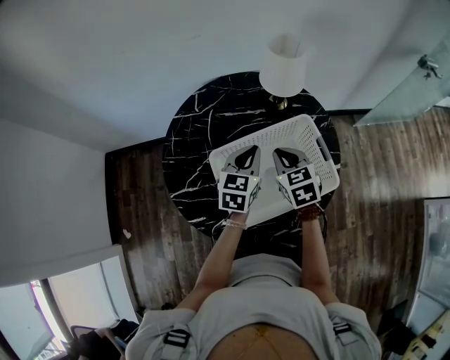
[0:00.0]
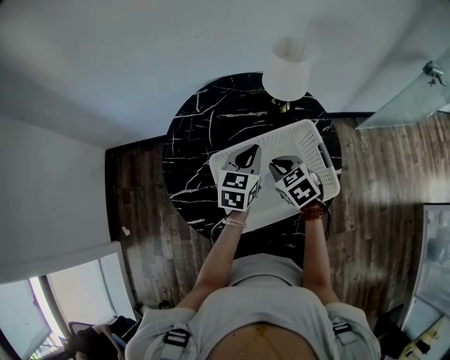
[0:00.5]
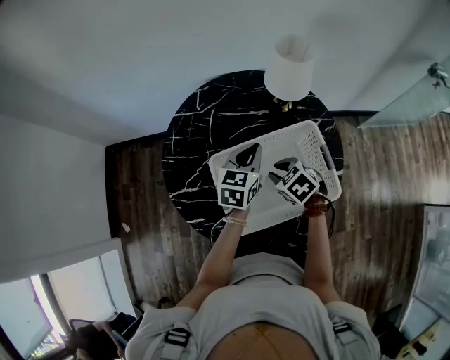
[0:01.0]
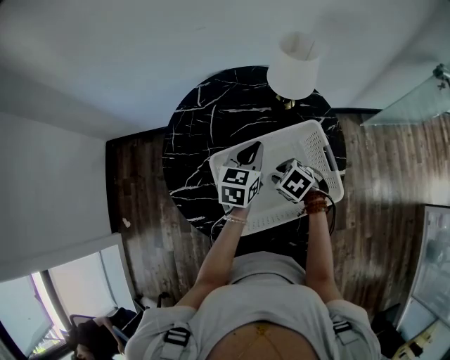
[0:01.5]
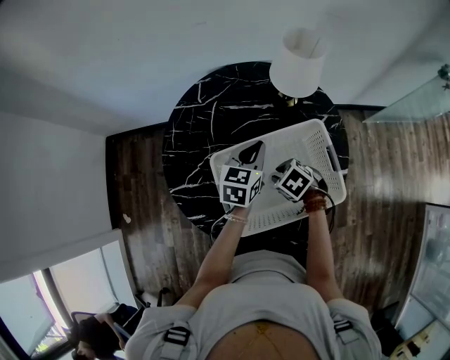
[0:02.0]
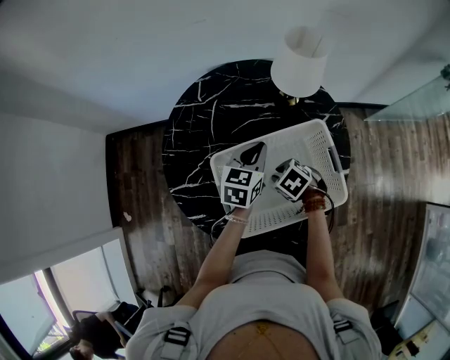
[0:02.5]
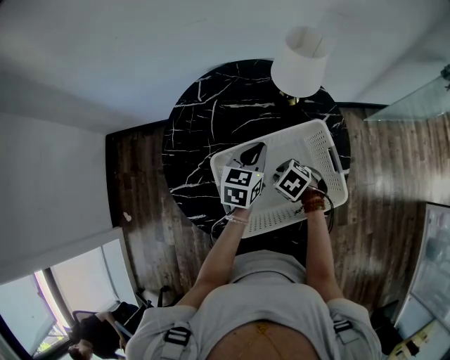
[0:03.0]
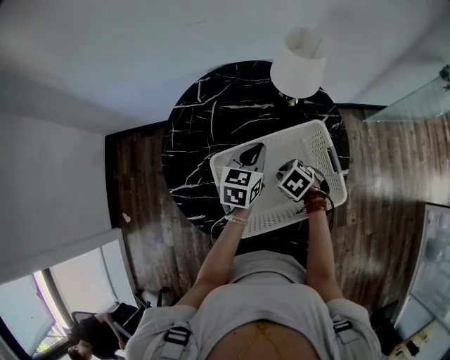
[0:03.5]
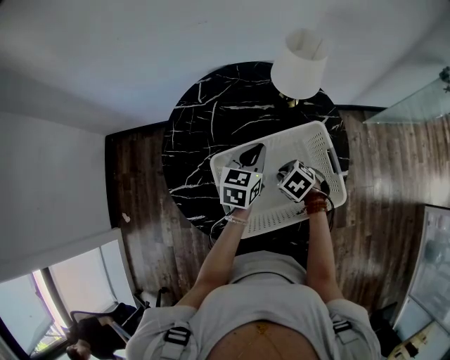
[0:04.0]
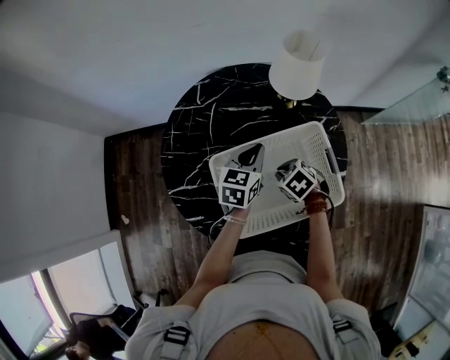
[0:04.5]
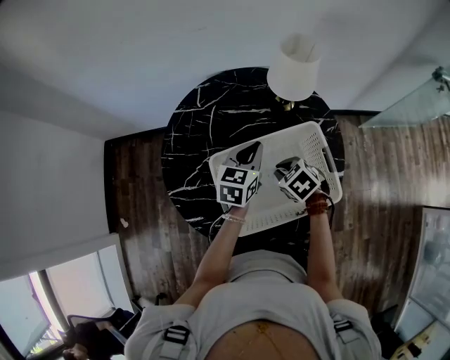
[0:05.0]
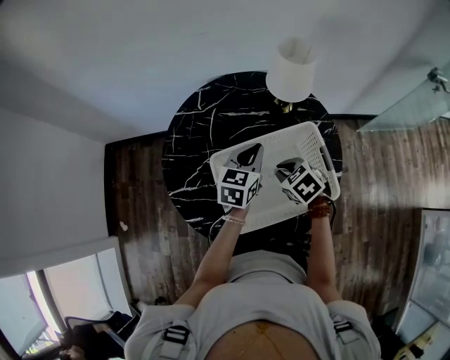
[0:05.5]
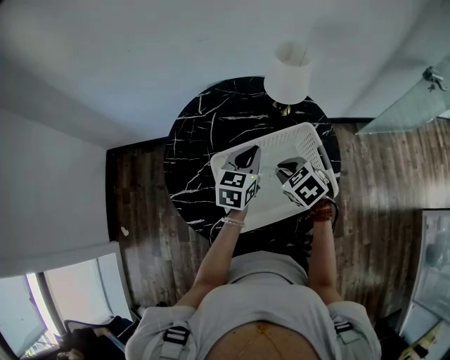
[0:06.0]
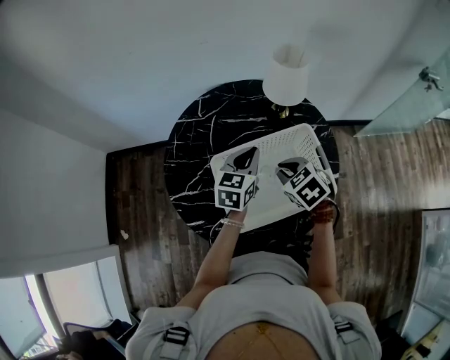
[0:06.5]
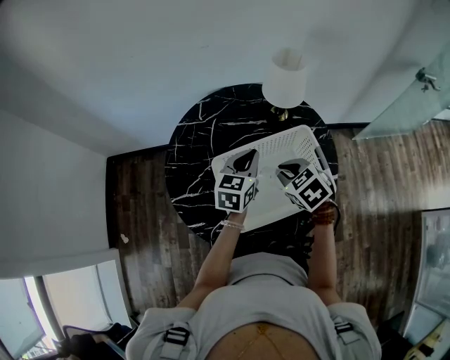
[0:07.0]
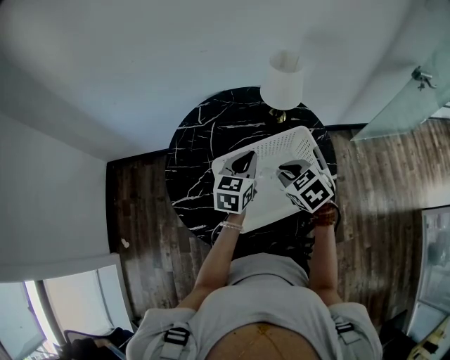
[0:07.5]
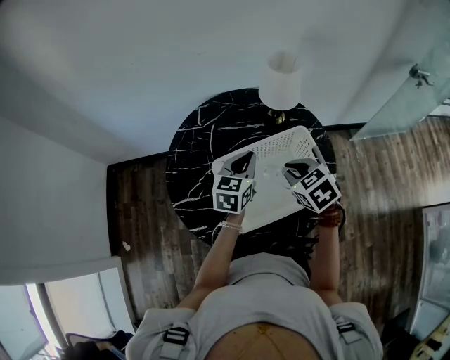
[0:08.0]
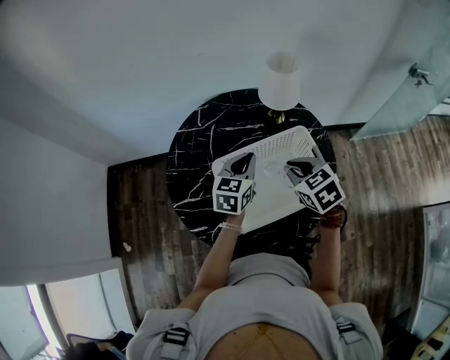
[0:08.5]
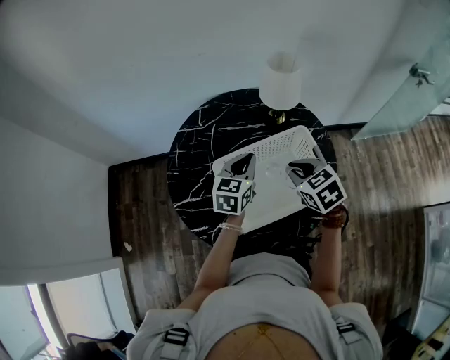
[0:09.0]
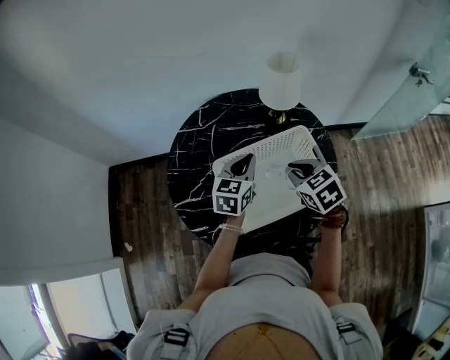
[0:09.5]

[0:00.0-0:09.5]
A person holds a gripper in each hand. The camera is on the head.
0:00.0 to 0:02.0: The left gripper ends up approximately 5 cm from where it was; the right gripper heads downward, covering about 15 cm, and rotates roughly 40 degrees.
0:02.0 to 0:04.0: There are only small adjustments of the grippers.
0:04.0 to 0:05.5: The right gripper heads upward, covering approximately 10 cm.
0:05.5 to 0:07.5: The right gripper goes roughly 10 cm upward.
0:07.5 to 0:09.5: There are only small adjustments of the grippers.

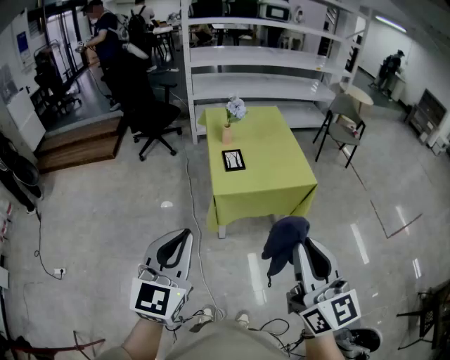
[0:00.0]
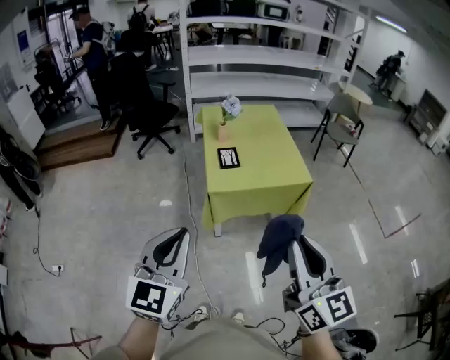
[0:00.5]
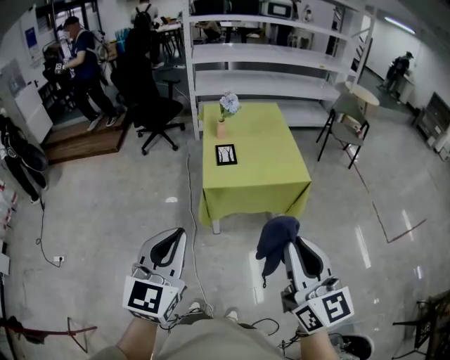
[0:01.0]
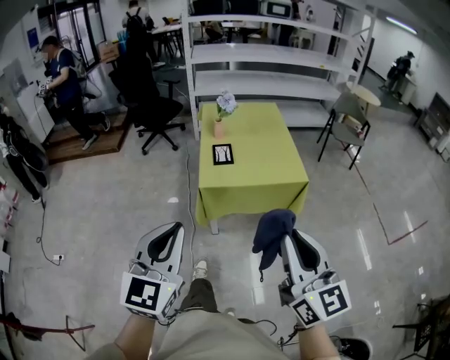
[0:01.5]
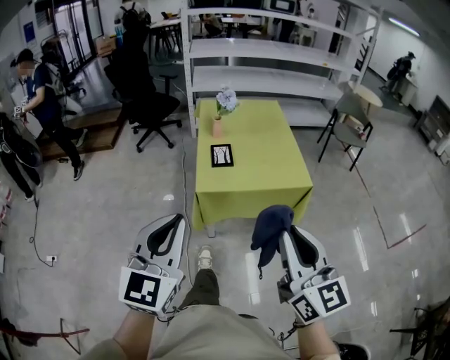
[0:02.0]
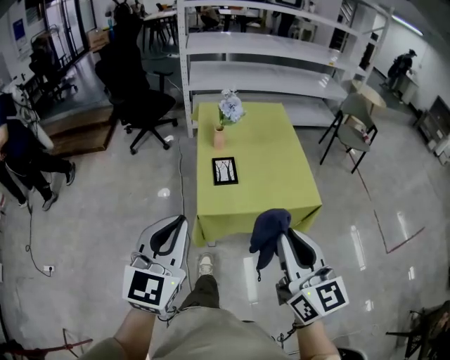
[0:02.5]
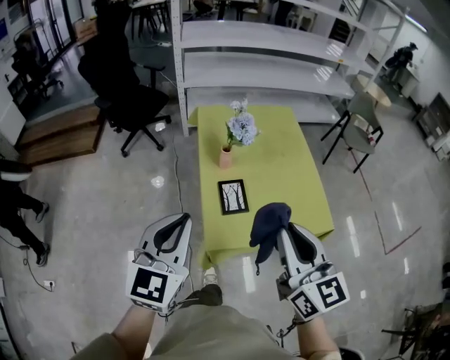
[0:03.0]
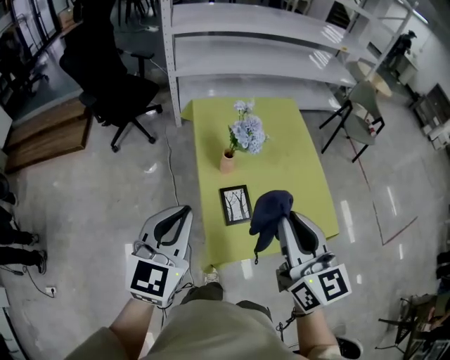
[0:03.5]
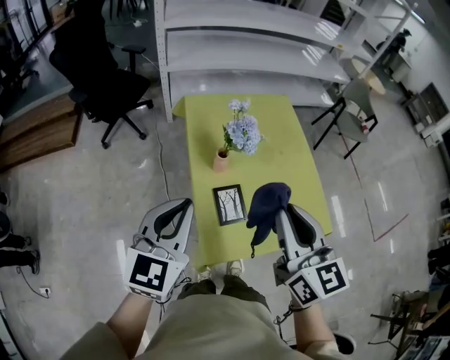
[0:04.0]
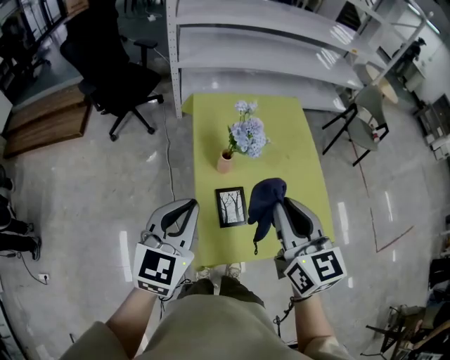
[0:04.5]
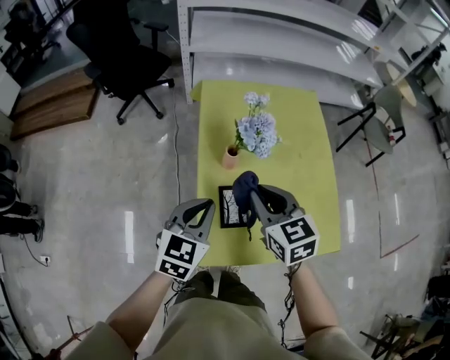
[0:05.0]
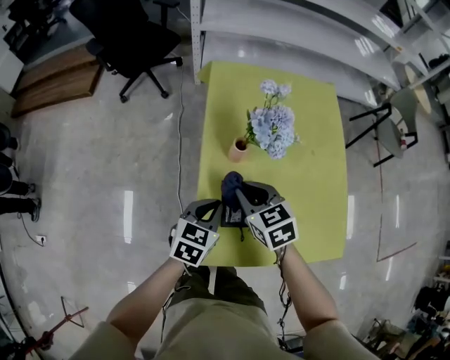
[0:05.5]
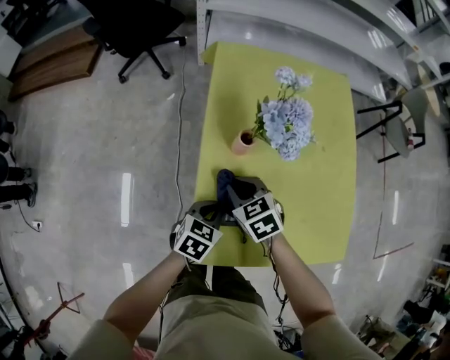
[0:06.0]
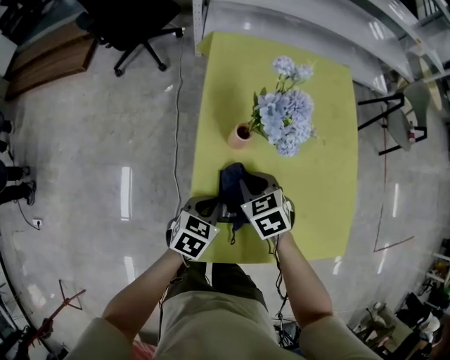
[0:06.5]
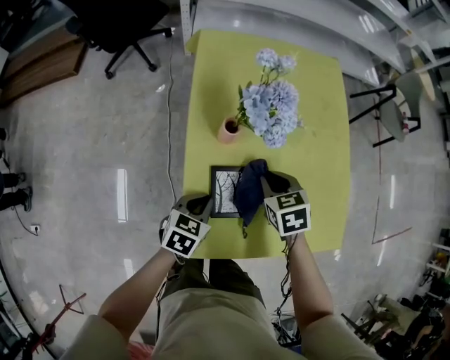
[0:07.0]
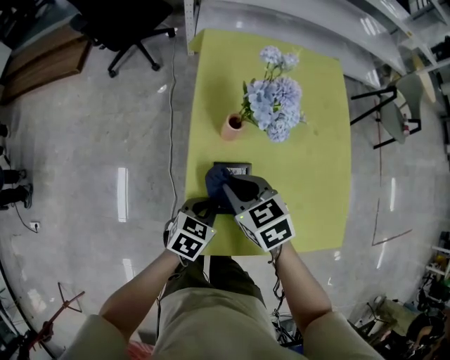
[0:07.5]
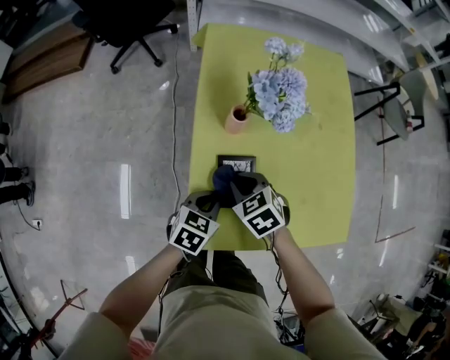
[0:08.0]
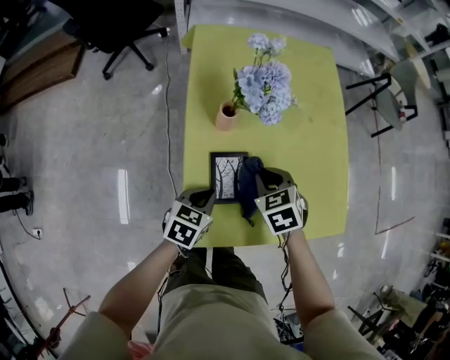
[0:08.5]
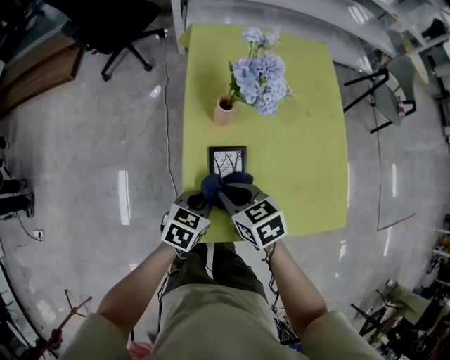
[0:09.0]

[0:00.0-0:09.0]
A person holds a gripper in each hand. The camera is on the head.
0:00.0 to 0:02.0: The left gripper goes some 10 cm to the right and forward; the right gripper moves forward, to the right and downward, some 15 cm.
0:02.0 to 0:04.5: The two grippers travel together, forward, roughly 50 cm.
0:04.5 to 0:07.0: The two grippers go approximately 30 cm downward. The left gripper tips its fingers downward by some 30 degrees. Meanwhile the right gripper tilts its fingers approximately 40 degrees downward.
0:07.0 to 0:09.0: The right gripper moves left and right over roughly 10 cm, changing direction 2 times, and turns by approximately 20 degrees.

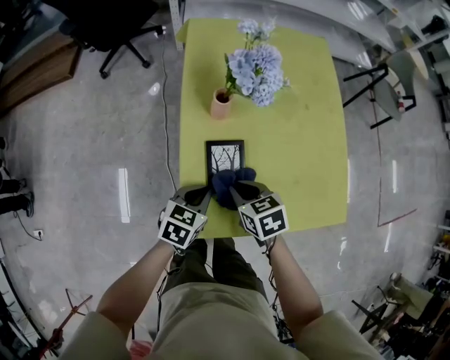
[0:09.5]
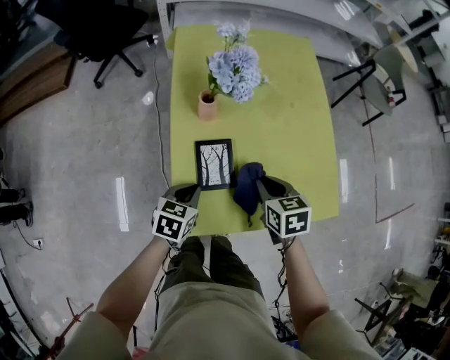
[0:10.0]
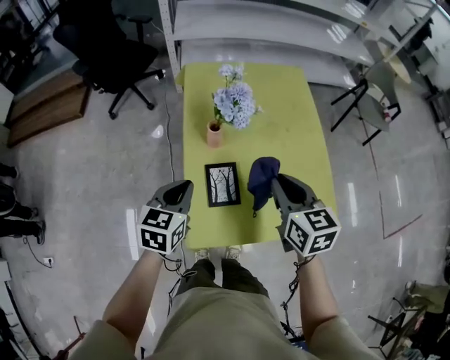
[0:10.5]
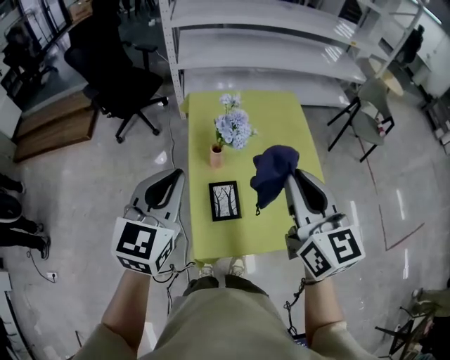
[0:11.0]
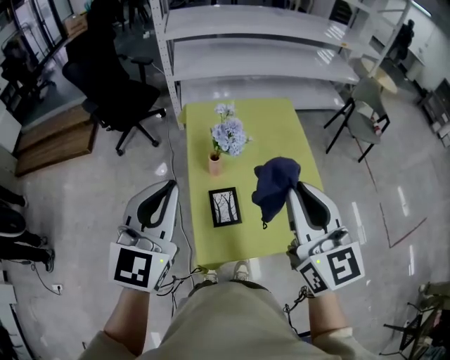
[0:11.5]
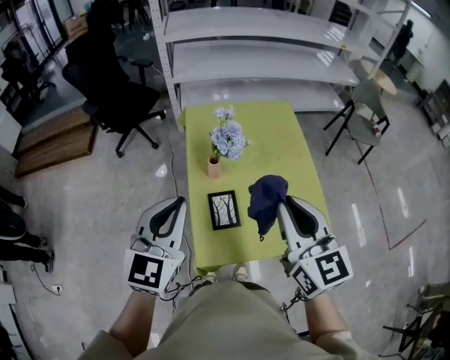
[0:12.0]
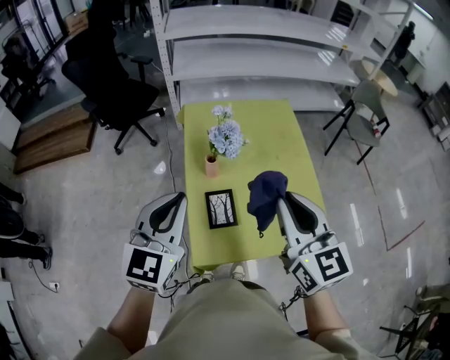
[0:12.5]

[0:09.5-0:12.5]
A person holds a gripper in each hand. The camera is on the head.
0:09.5 to 0:11.0: The two grippers go roughly 40 cm upward. The right gripper tips its fingers upward by approximately 50 degrees. Meanwhile the left gripper tips its fingers upward by approximately 30 degrees.

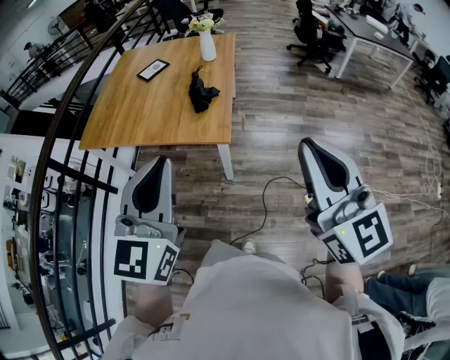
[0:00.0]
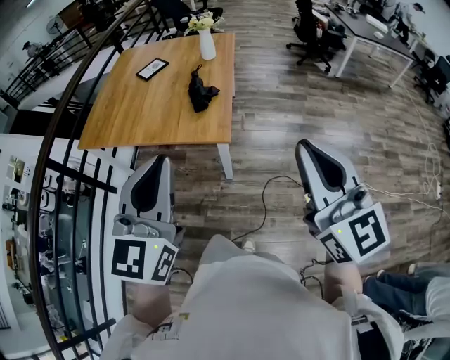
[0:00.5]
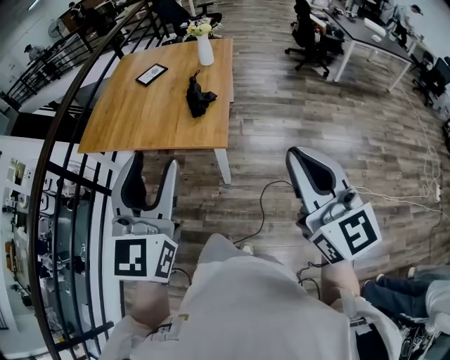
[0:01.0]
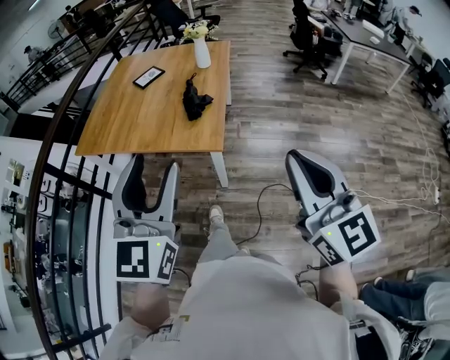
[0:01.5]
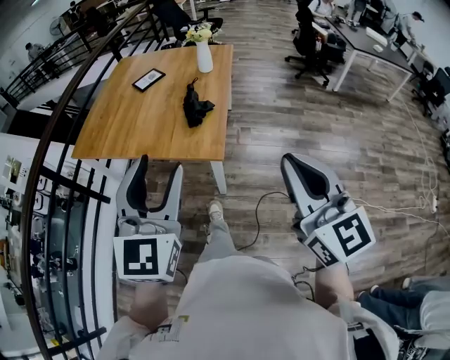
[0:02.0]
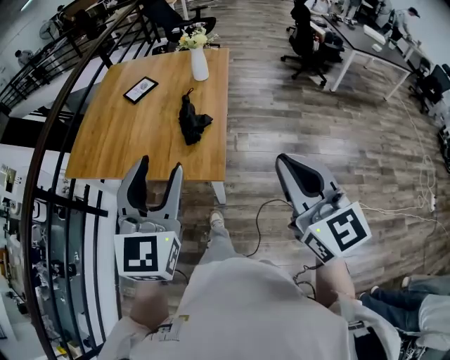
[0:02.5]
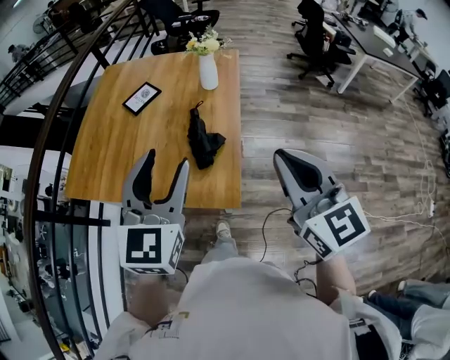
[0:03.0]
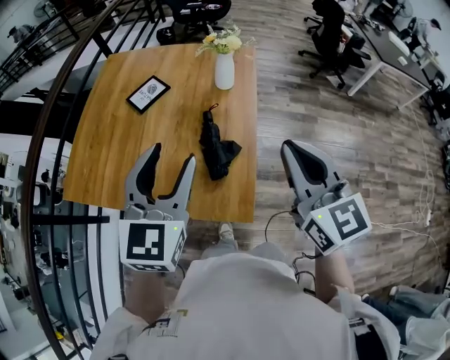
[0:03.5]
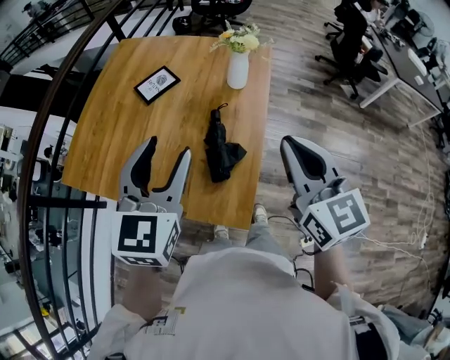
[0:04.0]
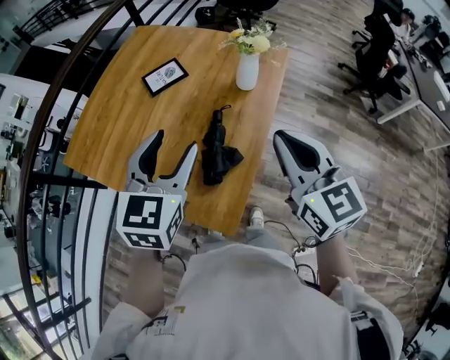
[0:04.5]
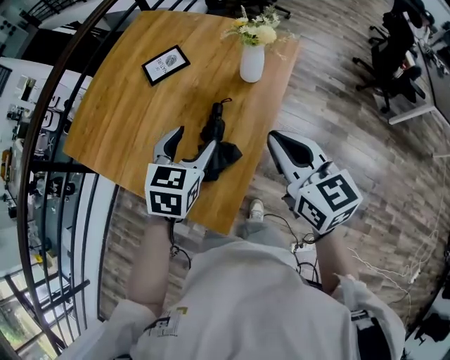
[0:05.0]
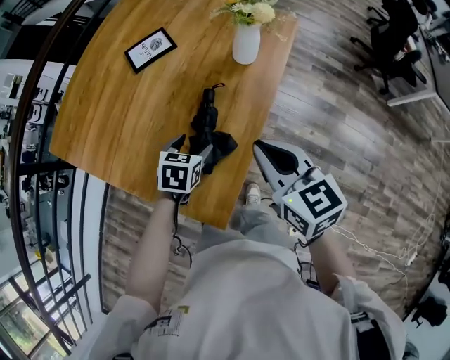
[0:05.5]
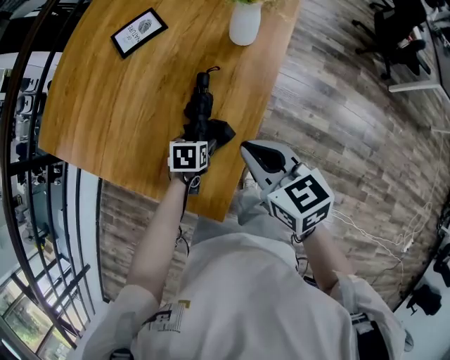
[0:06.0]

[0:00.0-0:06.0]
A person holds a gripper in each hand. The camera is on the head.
0:00.0 to 0:02.0: The two grippers go some 5 cm forward. The left gripper opens its fingers.
0:02.0 to 0:04.0: The pair of grippers is taken forward, about 50 cm.
0:04.0 to 0:06.0: The left gripper travels downward by some 50 cm, and tips its fingers downward by approximately 50 degrees. Meanwhile the right gripper travels downward and forward by some 30 cm, and changes its angle by some 40 degrees.
